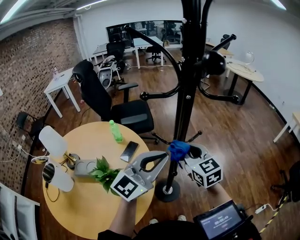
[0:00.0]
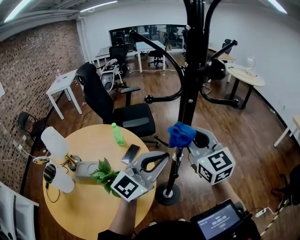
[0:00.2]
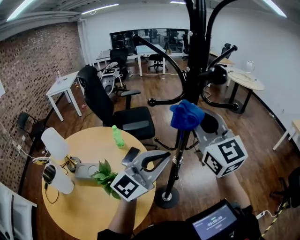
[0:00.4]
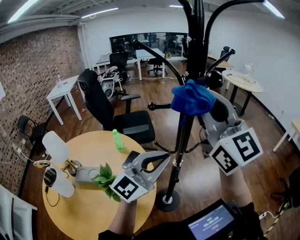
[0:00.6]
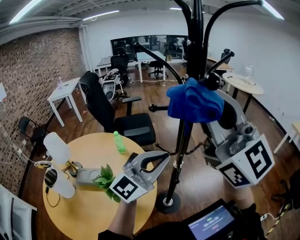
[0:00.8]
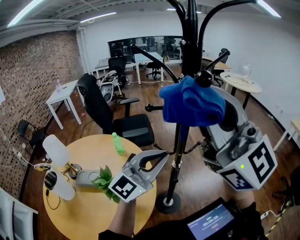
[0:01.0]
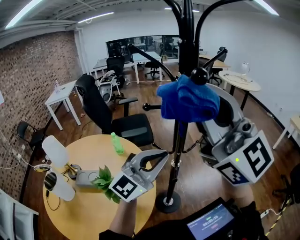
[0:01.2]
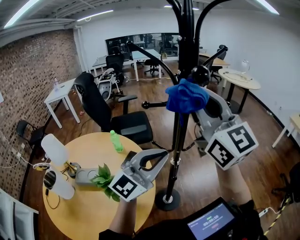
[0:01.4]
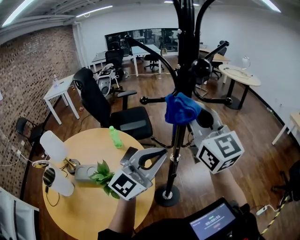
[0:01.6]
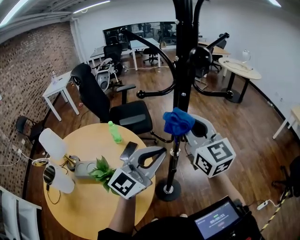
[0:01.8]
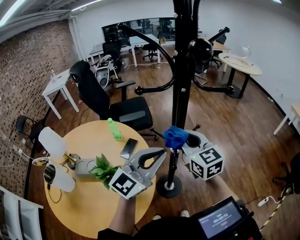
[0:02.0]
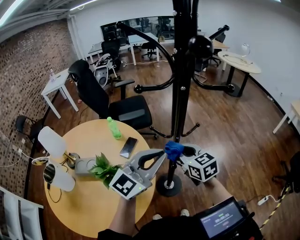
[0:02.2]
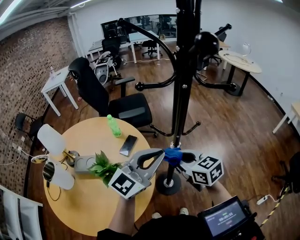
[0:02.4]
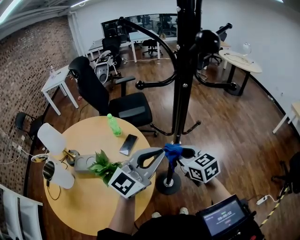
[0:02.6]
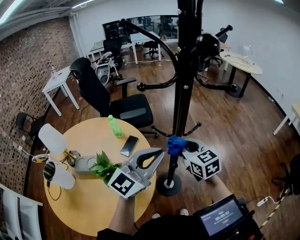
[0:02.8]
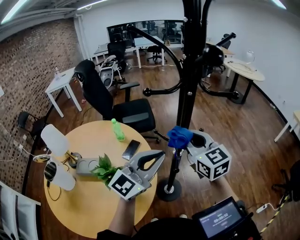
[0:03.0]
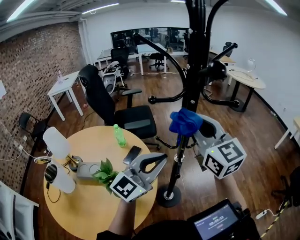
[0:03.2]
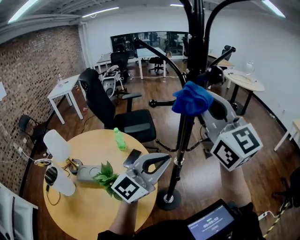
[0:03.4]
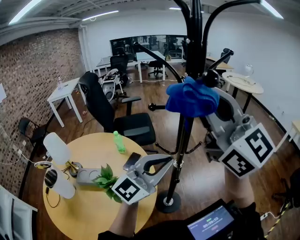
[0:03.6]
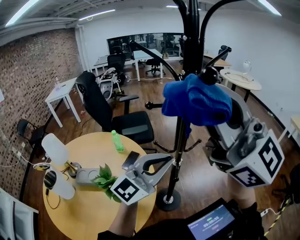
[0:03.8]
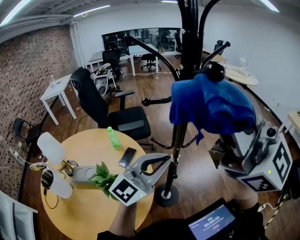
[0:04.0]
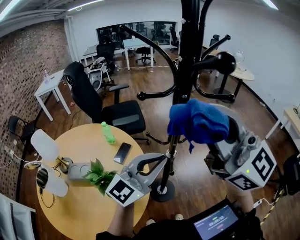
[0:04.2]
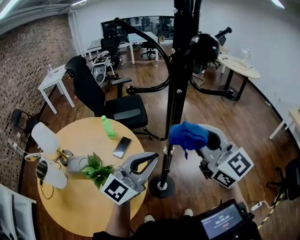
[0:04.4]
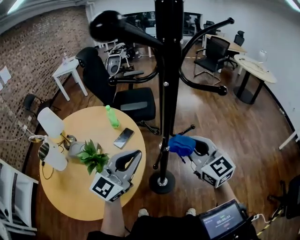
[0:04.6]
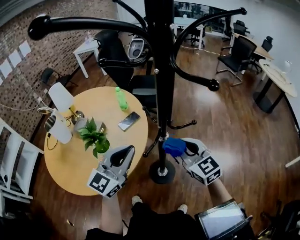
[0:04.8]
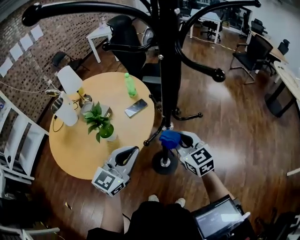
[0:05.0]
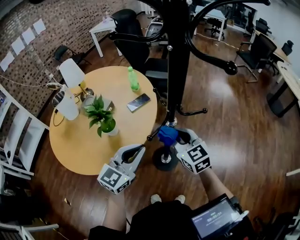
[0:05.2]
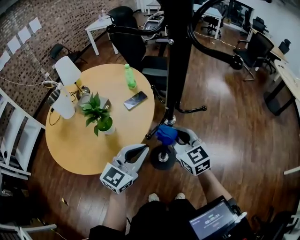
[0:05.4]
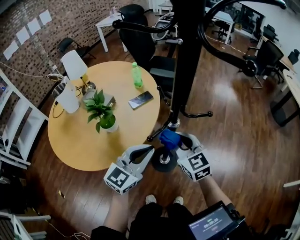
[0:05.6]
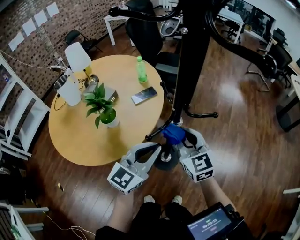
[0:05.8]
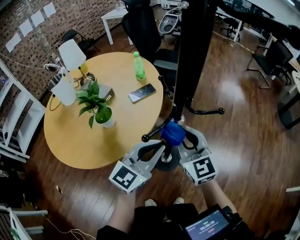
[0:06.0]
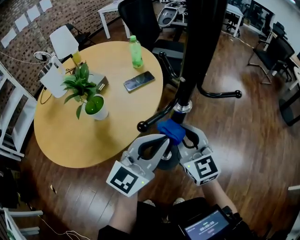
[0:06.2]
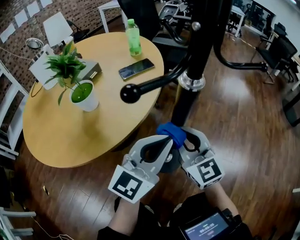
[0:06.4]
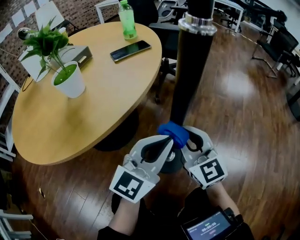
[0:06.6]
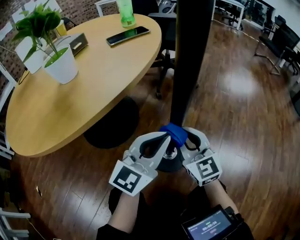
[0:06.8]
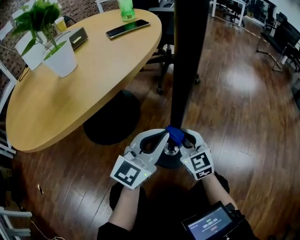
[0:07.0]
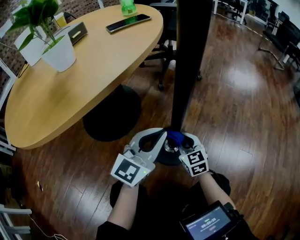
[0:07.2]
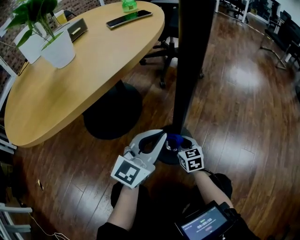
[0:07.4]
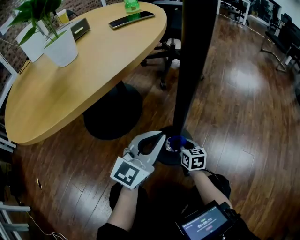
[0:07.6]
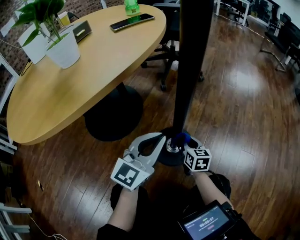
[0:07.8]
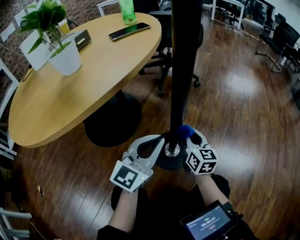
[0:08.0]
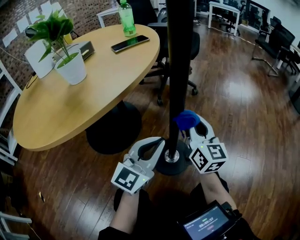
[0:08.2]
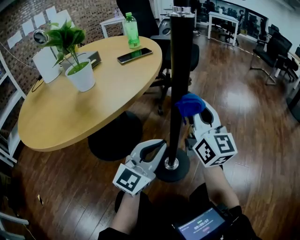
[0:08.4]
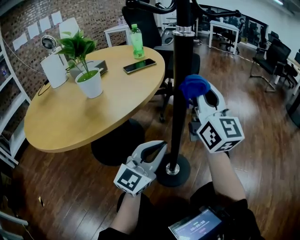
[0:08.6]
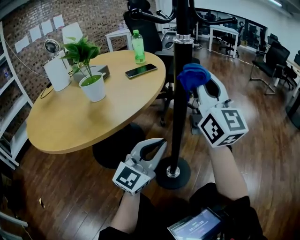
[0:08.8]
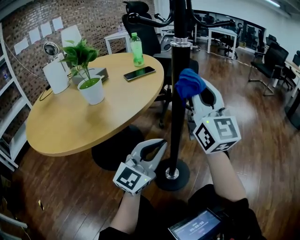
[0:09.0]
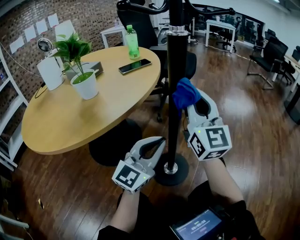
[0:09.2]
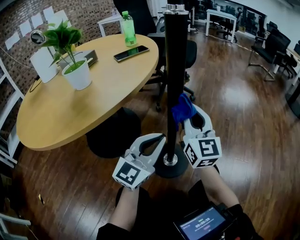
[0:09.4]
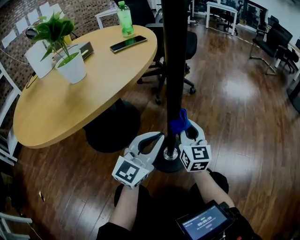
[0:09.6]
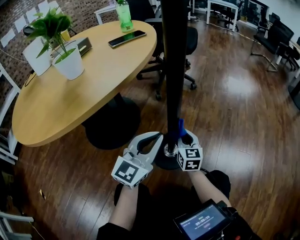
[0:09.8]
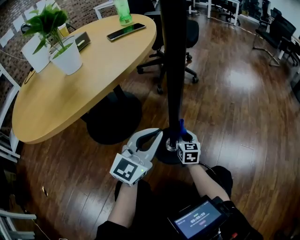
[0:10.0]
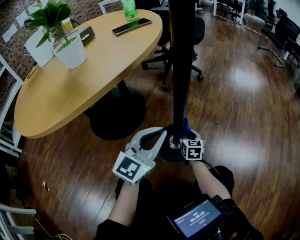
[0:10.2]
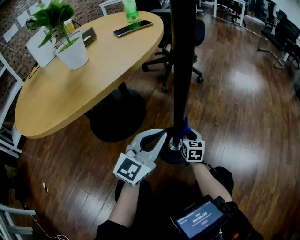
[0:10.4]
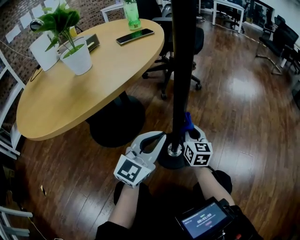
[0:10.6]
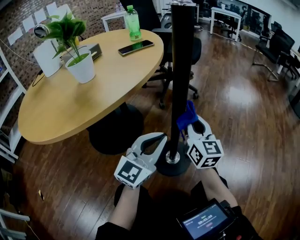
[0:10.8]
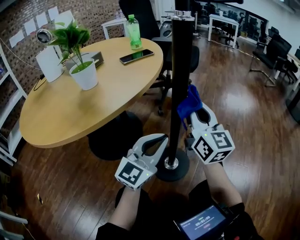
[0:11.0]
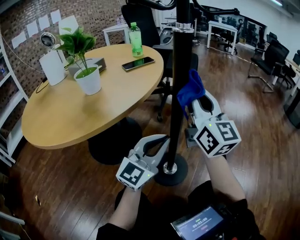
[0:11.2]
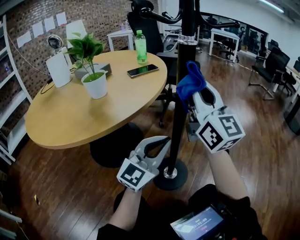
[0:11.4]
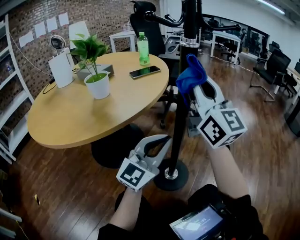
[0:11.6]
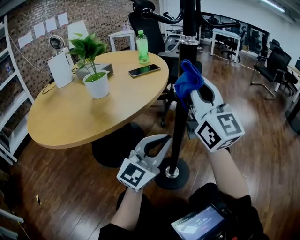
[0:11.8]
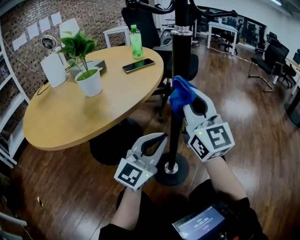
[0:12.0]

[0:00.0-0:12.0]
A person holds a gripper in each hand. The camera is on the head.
0:00.0 to 0:01.6: The right gripper travels upward by roughly 25 cm, and tilts its fingers some 30 degrees upward.
0:01.6 to 0:03.0: The right gripper travels downward by about 15 cm, and swivels approximately 20 degrees.
0:03.0 to 0:04.4: The right gripper moves roughly 30 cm upward and comes back.
0:04.4 to 0:06.0: Both grippers move downward, about 25 cm. The right gripper changes its angle by roughly 30 degrees, while the left gripper changes its angle by about 40 degrees.
0:06.0 to 0:07.6: The right gripper shifts roughly 70 cm downward, and swivels some 40 degrees, while the left gripper moves downward, approximately 40 cm.
0:07.6 to 0:09.0: The right gripper goes roughly 60 cm upward, and tilts its fingers roughly 60 degrees upward; the left gripper is displaced upward by about 15 cm.
0:09.0 to 0:10.4: The right gripper goes roughly 50 cm downward, and points its fingers roughly 50 degrees further downward. The left gripper heads downward, covering roughly 15 cm.
0:10.4 to 0:12.0: The right gripper shifts approximately 50 cm upward, and angles its fingers upward, by about 50 degrees, while the left gripper travels upward by about 10 cm.

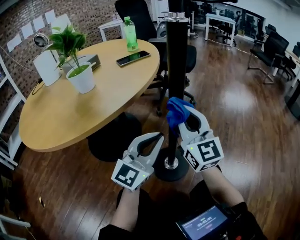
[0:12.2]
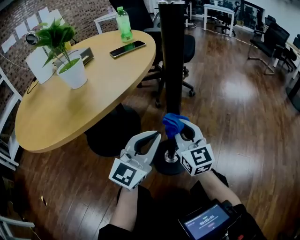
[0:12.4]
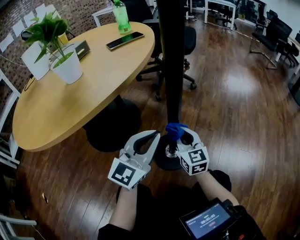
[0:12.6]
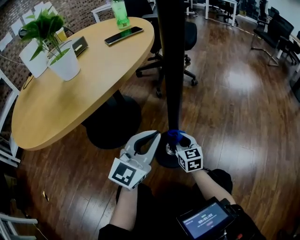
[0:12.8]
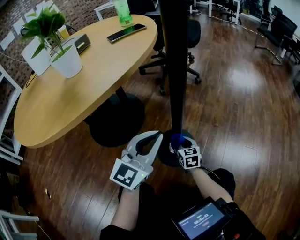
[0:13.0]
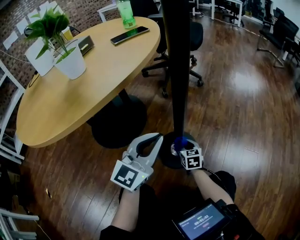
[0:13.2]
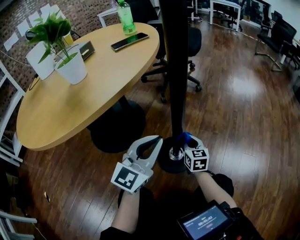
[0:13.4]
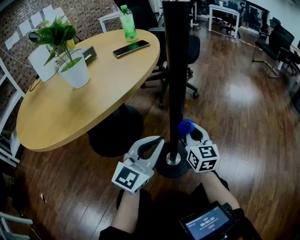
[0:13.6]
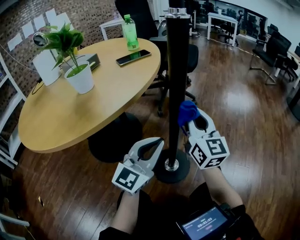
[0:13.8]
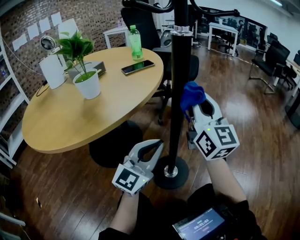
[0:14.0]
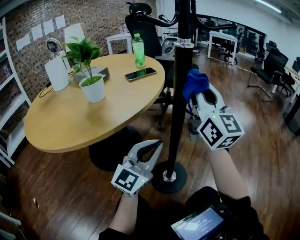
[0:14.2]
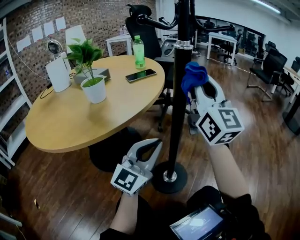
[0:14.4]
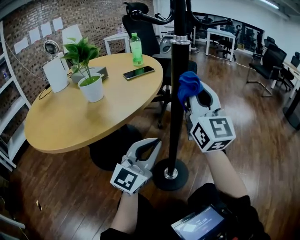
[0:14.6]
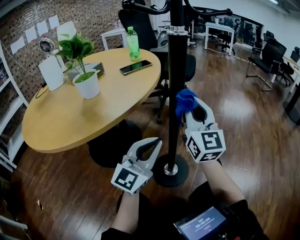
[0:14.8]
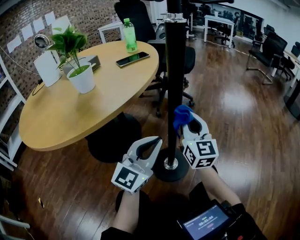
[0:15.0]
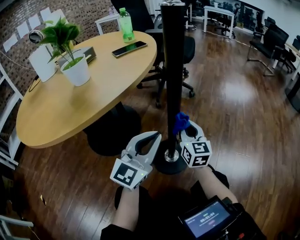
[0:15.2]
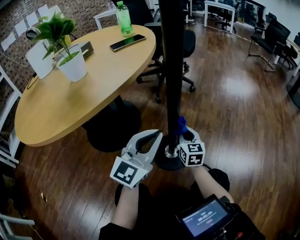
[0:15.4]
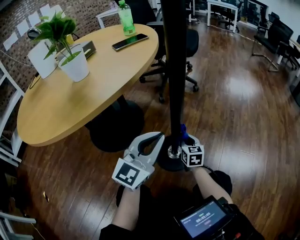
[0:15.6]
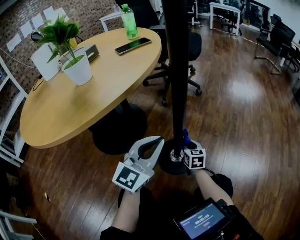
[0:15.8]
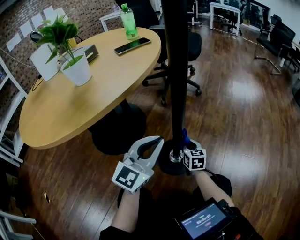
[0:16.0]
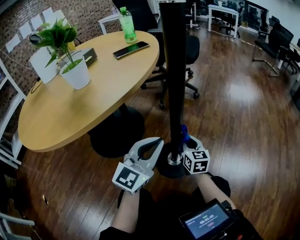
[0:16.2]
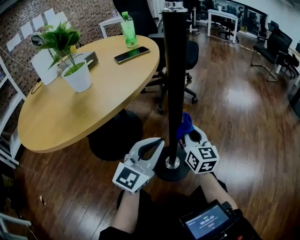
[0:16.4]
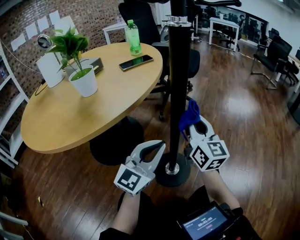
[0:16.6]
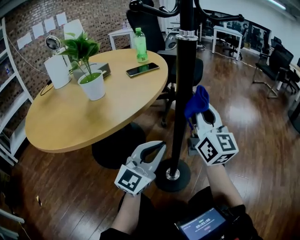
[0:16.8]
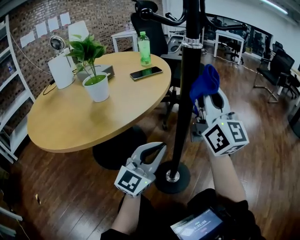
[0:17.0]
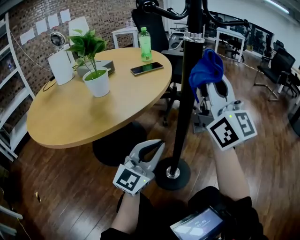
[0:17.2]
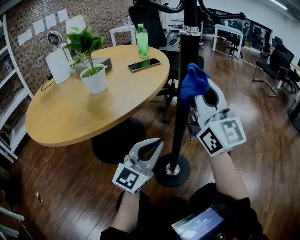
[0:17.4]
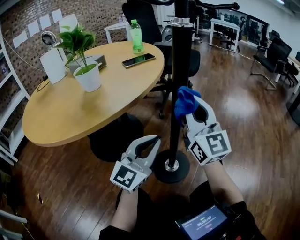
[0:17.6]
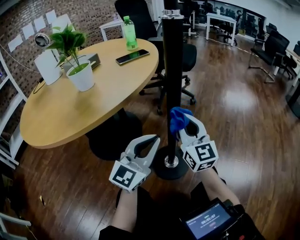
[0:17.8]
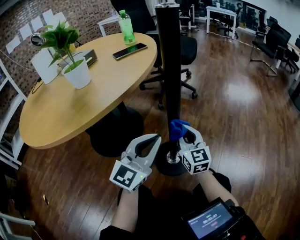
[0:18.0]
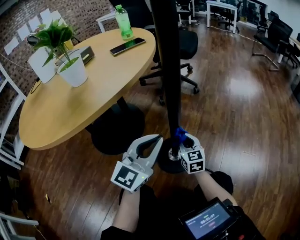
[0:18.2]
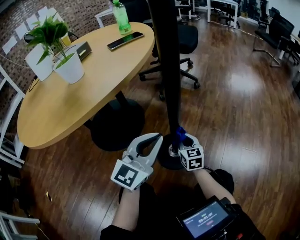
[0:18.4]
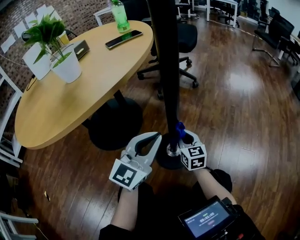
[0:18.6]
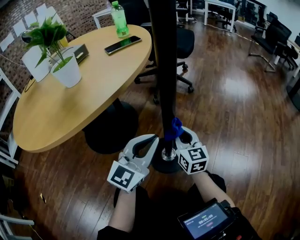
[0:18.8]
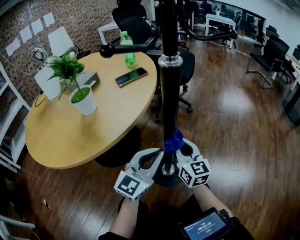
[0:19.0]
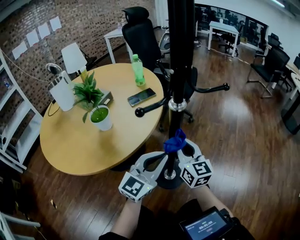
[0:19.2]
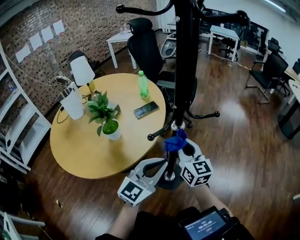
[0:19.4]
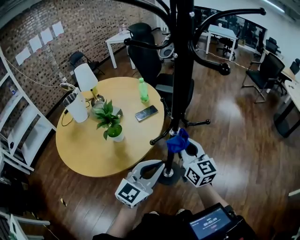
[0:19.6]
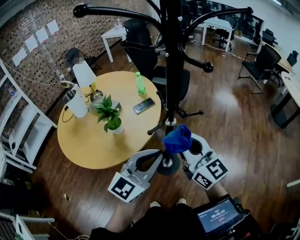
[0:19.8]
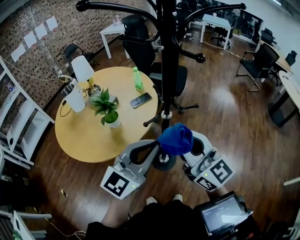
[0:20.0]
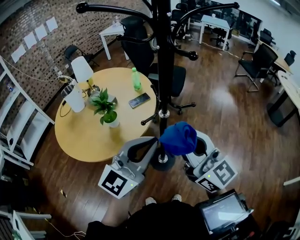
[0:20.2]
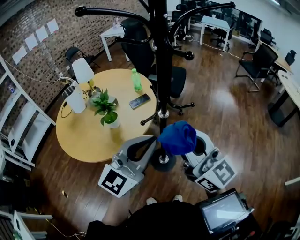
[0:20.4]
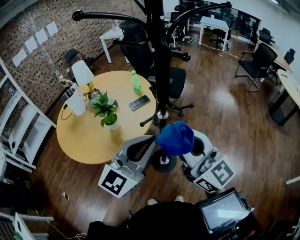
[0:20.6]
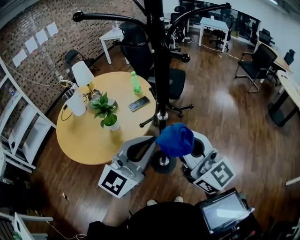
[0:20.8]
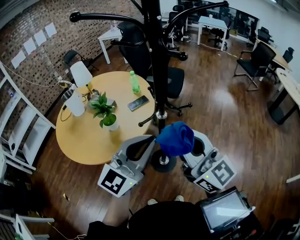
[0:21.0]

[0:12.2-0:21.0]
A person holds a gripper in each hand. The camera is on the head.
0:12.2 to 0:13.6: The right gripper travels downward by roughly 15 cm, and rotates approximately 20 degrees; the left gripper travels downward by about 5 cm.
0:13.6 to 0:15.2: The left gripper reaches some 10 cm upward, then returns. The right gripper moves some 35 cm upward and comes back.
0:15.2 to 0:16.6: The right gripper is displaced upward by about 15 cm.
0:16.6 to 0:18.0: The right gripper goes roughly 15 cm downward.
0:18.0 to 0:19.6: The grippers both shift upward by roughly 40 cm.
0:19.6 to 0:21.0: The left gripper goes some 15 cm upward; the right gripper shifts approximately 25 cm upward and backward, and swivels about 30 degrees.

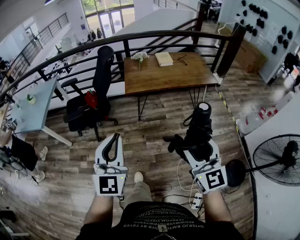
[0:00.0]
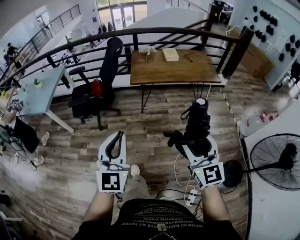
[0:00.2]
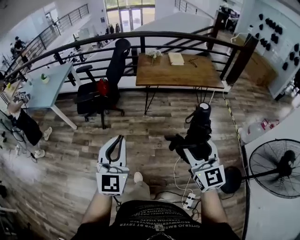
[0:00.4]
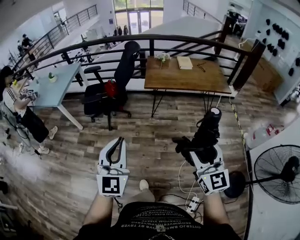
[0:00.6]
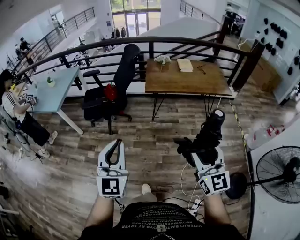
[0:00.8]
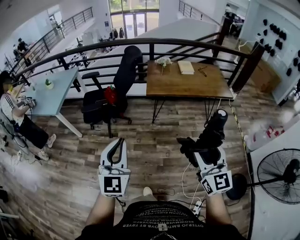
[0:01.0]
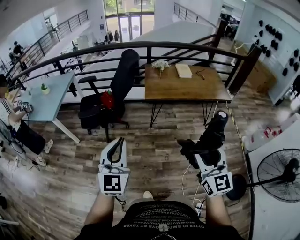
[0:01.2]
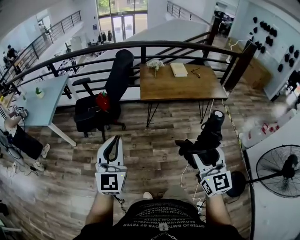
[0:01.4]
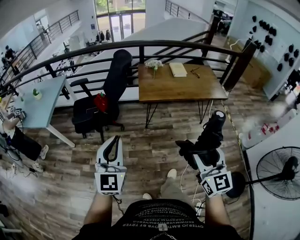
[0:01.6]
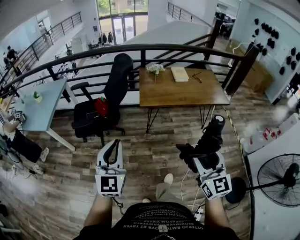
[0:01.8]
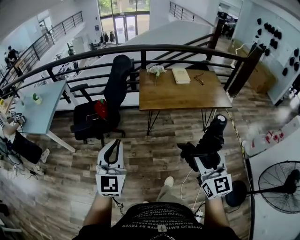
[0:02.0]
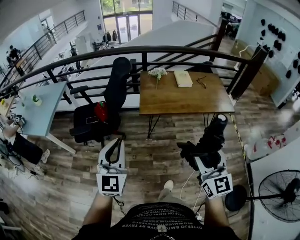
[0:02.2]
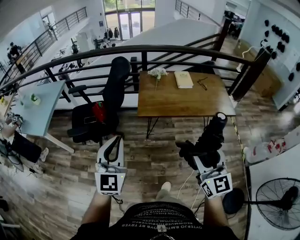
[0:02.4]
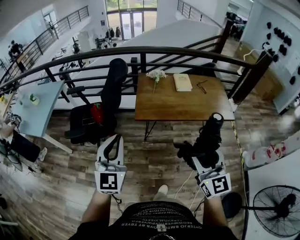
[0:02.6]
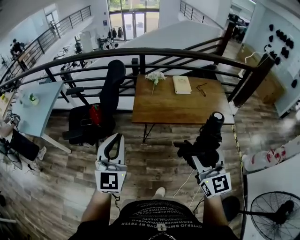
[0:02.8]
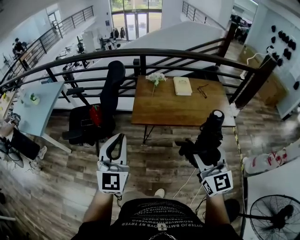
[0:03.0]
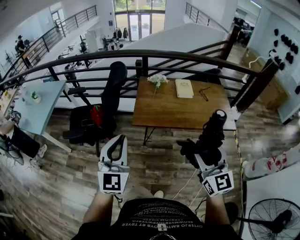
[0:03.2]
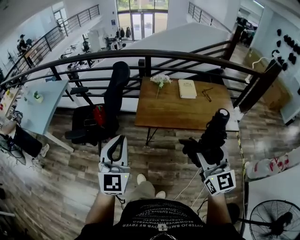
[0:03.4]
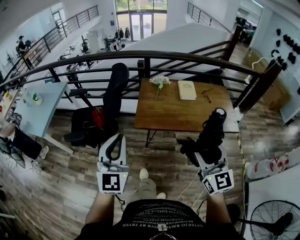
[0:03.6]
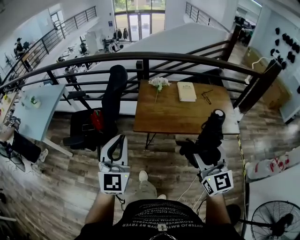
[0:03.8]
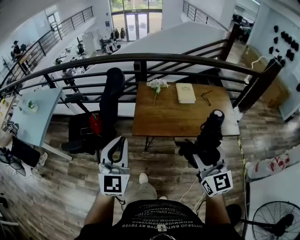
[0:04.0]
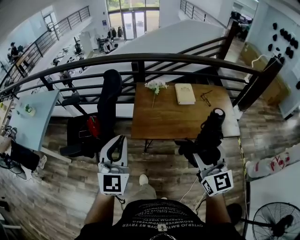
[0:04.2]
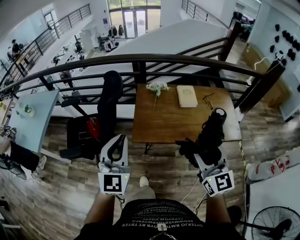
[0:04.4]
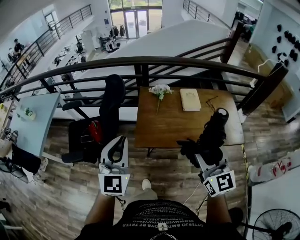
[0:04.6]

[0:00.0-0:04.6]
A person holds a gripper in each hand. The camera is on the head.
0:00.0 to 0:01.6: The right gripper travels to the left by about 5 cm, and goes backward and returns, approximately 10 cm each way, while the left gripper travels to the left by some 10 cm, and reaches approximately 10 cm backward, then returns.
0:01.6 to 0:03.0: Both grippers travel together forward and to the right, approximately 30 cm.
0:03.0 to 0:04.6: The grippers both shift forward by about 20 cm.
